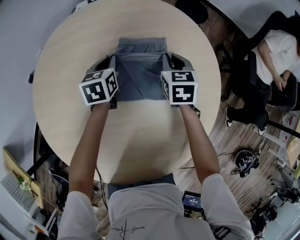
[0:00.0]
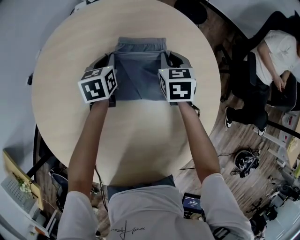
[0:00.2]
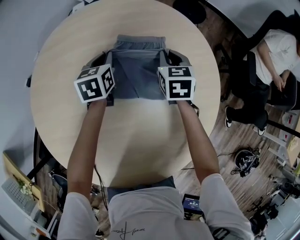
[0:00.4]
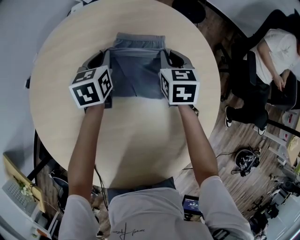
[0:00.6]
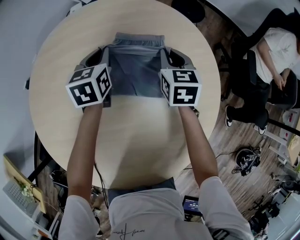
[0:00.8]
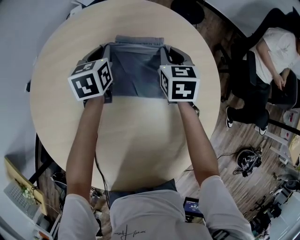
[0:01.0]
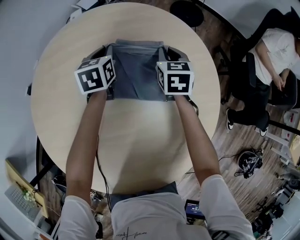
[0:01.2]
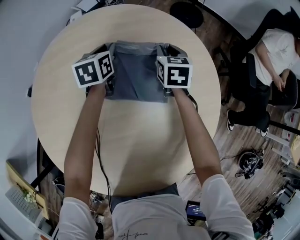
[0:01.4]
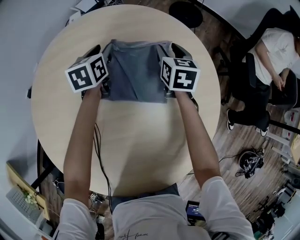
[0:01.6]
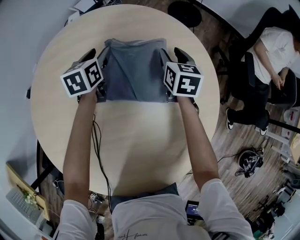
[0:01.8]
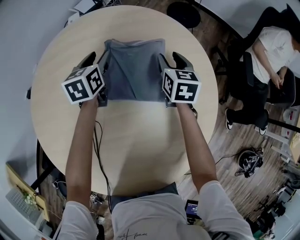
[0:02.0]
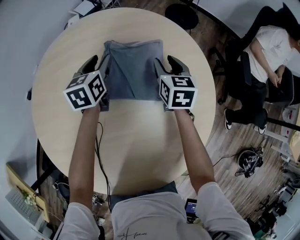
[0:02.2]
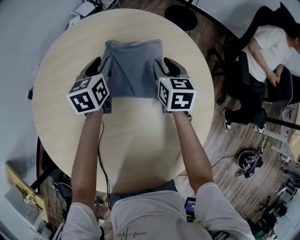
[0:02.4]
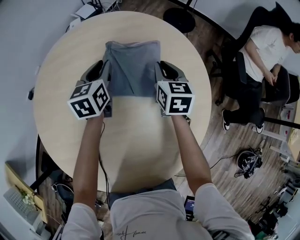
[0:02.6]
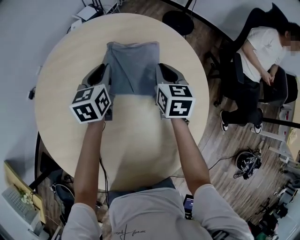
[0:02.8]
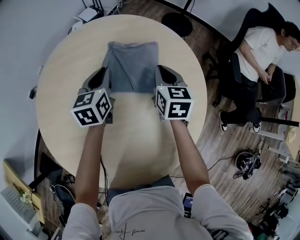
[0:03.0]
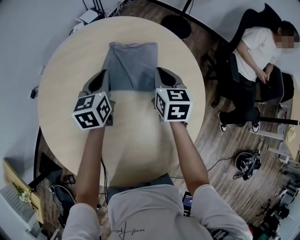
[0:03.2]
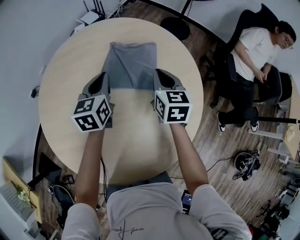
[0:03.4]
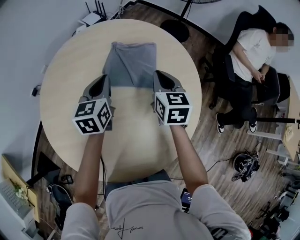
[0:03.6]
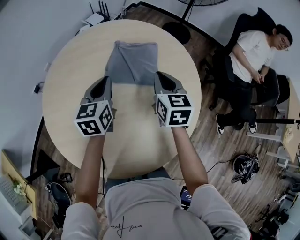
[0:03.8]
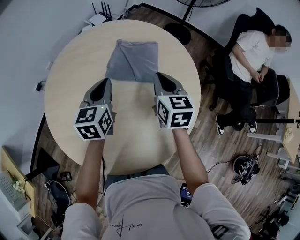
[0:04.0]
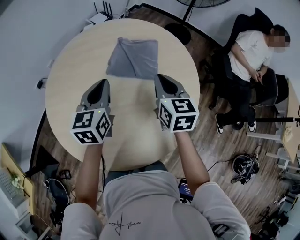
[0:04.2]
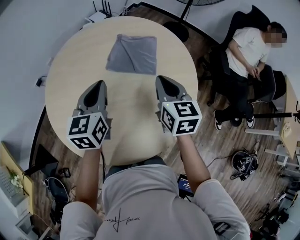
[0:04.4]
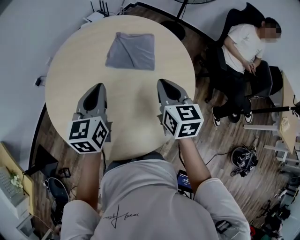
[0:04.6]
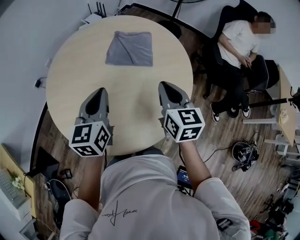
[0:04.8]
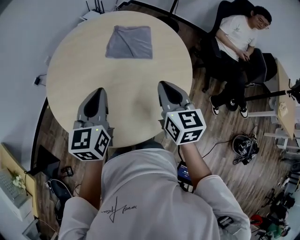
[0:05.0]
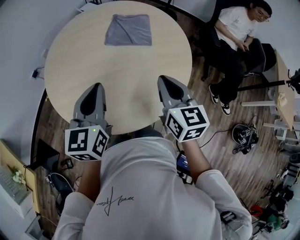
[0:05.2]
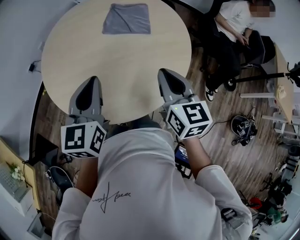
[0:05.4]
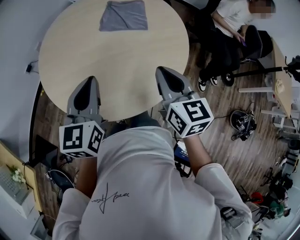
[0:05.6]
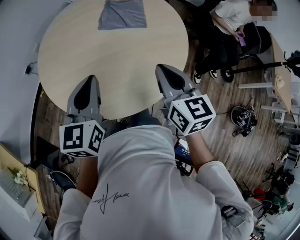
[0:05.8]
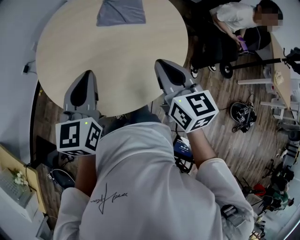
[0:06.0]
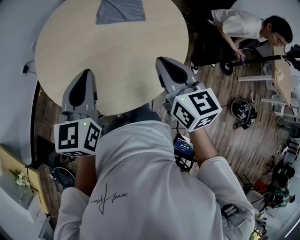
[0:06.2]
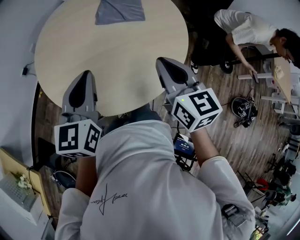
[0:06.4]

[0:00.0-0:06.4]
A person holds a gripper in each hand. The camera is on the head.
0:00.0 to 0:01.6: The grippers both shift forward by some 10 cm. The right gripper opens; the left gripper opens up.
0:01.6 to 0:03.2: Both grippers travel together backward and upward, roughly 20 cm. The right gripper closes, while the left gripper closes.
0:03.2 to 0:04.8: The grippers both shift backward and upward by roughly 30 cm.
0:04.8 to 0:06.4: Both grippers move backward and to the left, some 15 cm.

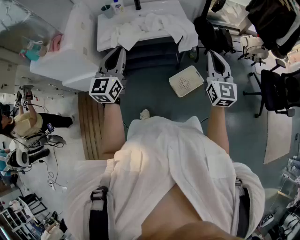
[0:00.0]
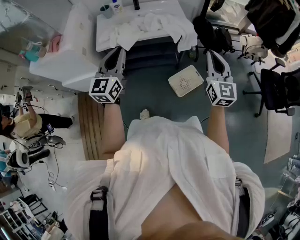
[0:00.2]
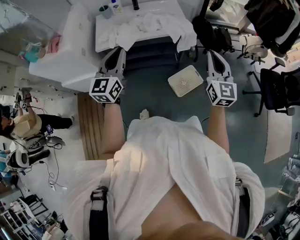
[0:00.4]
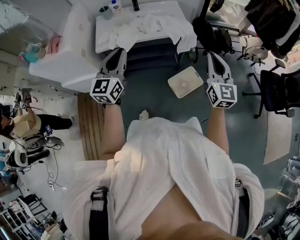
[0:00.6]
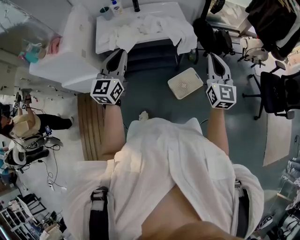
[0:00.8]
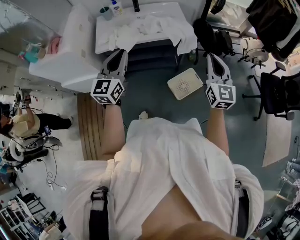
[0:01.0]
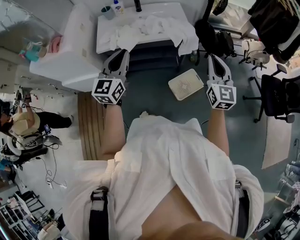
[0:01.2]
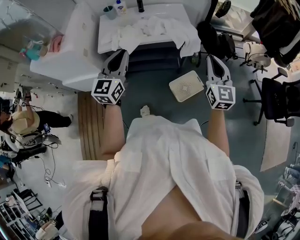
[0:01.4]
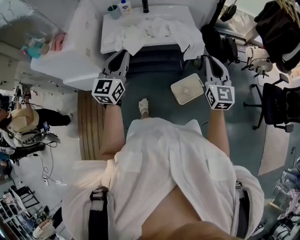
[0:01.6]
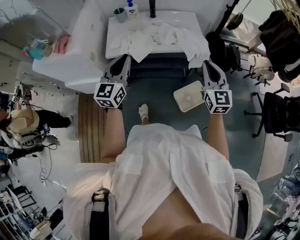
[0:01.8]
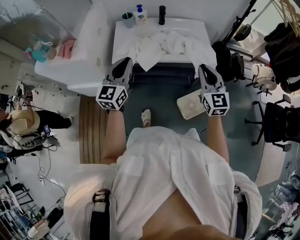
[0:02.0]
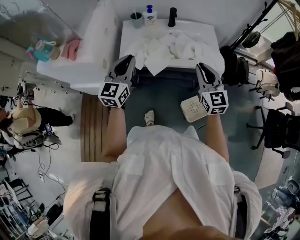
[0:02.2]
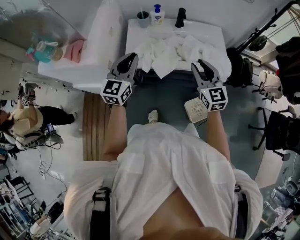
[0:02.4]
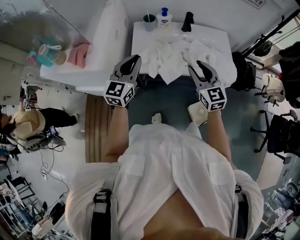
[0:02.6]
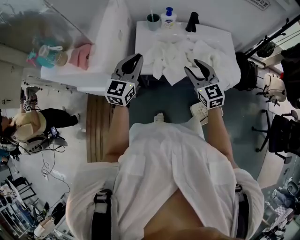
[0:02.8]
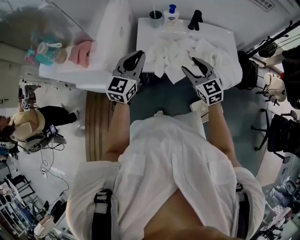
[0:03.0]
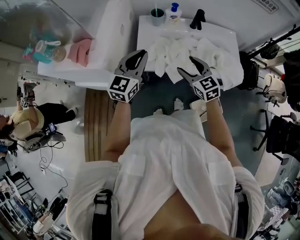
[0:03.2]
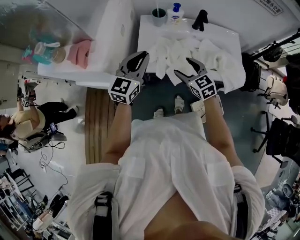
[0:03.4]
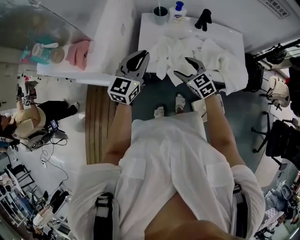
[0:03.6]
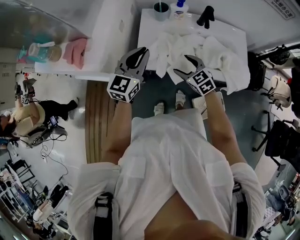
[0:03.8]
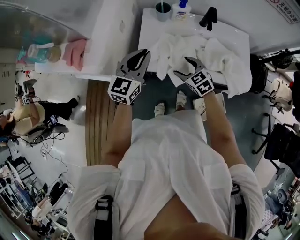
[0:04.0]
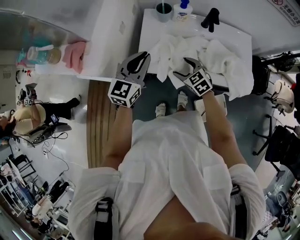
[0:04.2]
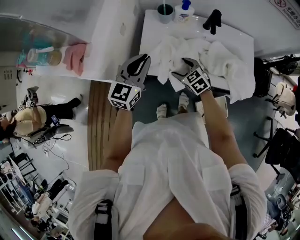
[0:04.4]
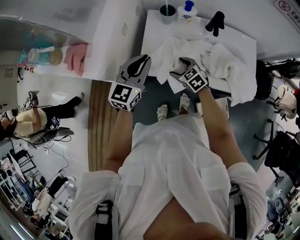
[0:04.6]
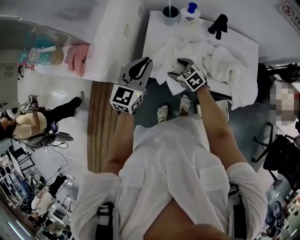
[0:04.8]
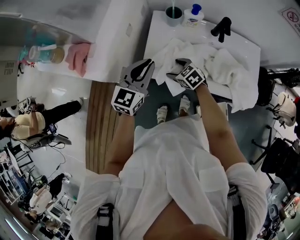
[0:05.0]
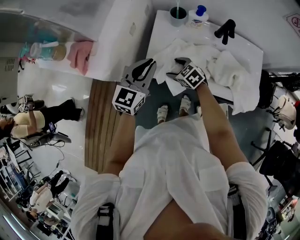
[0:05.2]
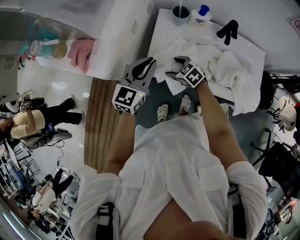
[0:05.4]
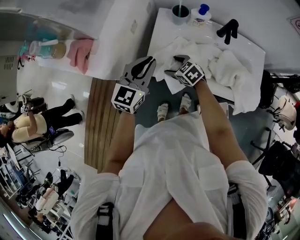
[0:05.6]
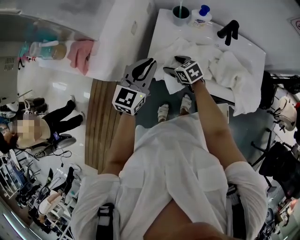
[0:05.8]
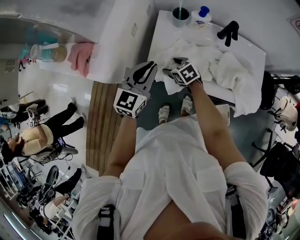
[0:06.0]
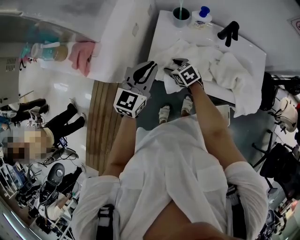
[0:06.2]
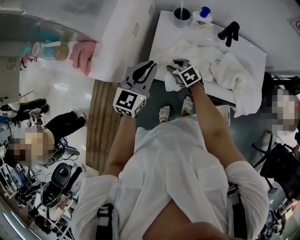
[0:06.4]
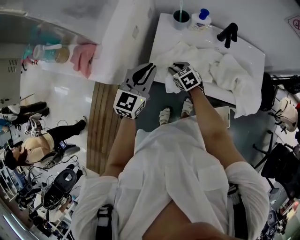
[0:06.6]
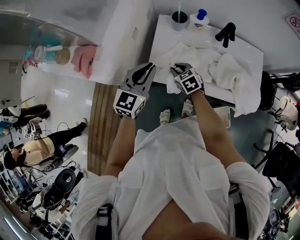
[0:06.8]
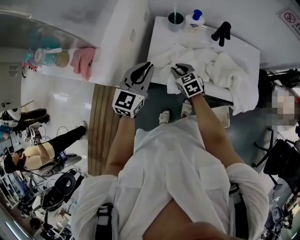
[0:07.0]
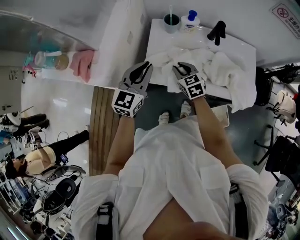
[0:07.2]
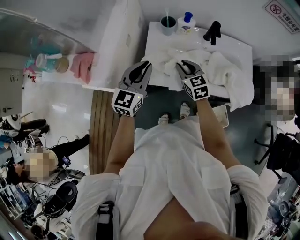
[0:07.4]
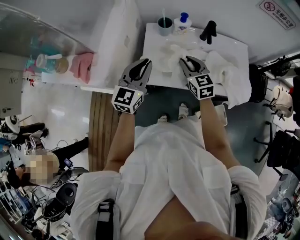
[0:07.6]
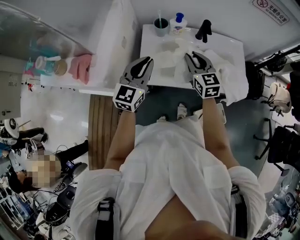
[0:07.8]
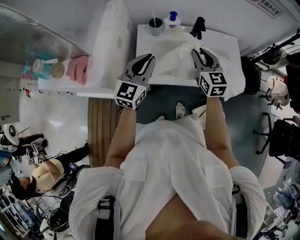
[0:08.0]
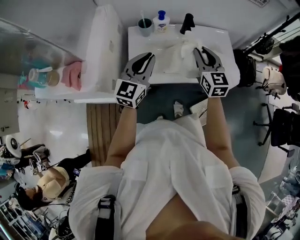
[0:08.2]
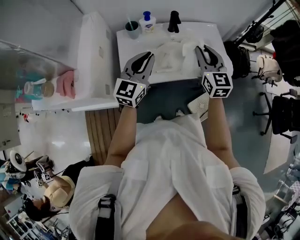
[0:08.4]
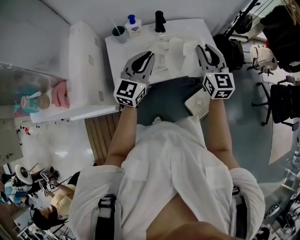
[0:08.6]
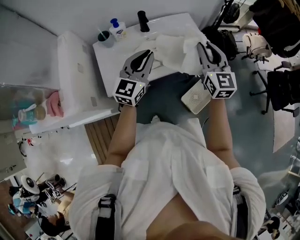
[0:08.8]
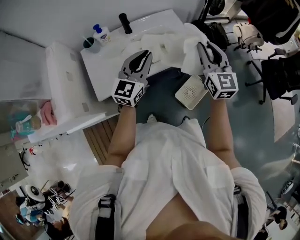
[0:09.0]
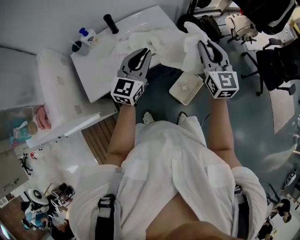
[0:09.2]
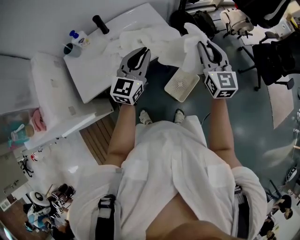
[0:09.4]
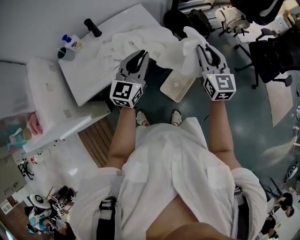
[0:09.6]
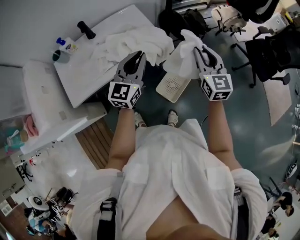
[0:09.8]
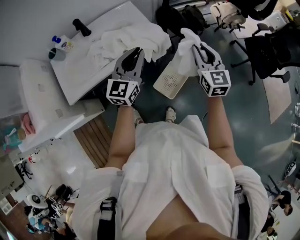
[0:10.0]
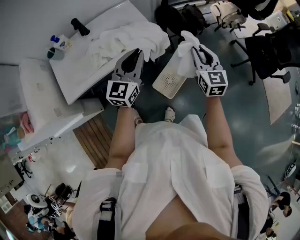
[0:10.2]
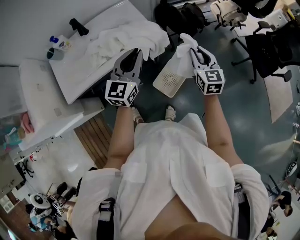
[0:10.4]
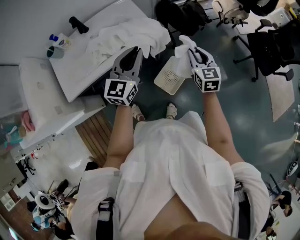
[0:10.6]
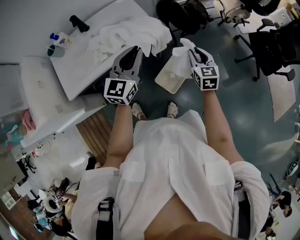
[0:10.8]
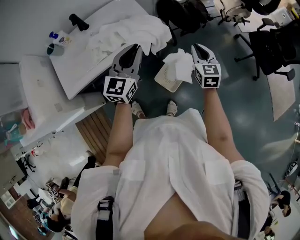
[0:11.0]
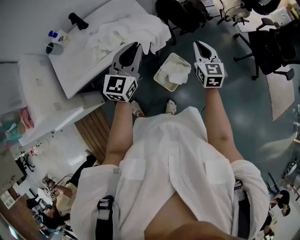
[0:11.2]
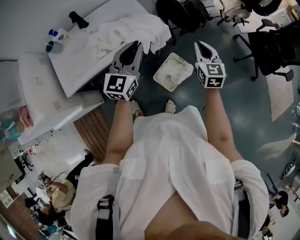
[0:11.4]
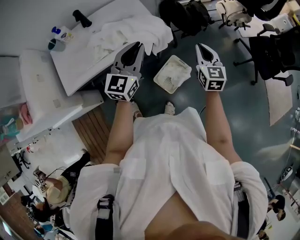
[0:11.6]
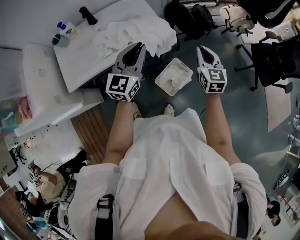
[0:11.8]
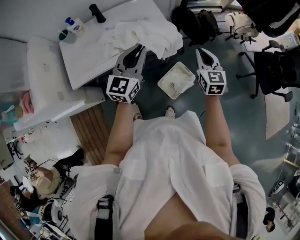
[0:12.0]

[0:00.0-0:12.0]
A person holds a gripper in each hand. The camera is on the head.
0:00.0 to 0:01.6: The right gripper shifts some 5 cm forward.
0:01.6 to 0:03.0: The left gripper goes some 30 cm forward and to the left, while the right gripper travels to the left and forward by about 40 cm, rotates roughly 30 degrees, and opens.
0:03.0 to 0:04.4: The left gripper travels downward by approximately 5 cm. Meanwhile the right gripper shifts approximately 20 cm downward and forward, and turns by some 30 degrees.
0:04.4 to 0:06.0: The right gripper travels to the left and forward by roughly 10 cm.
0:06.0 to 0:07.6: The left gripper heads upward, covering roughly 5 cm; the right gripper heads upward and to the right, covering some 20 cm, swivels approximately 40 degrees, and closes its fingers.
0:07.6 to 0:09.0: The left gripper shifts by some 30 cm, and changes its angle by about 30 degrees. Meanwhile the right gripper shifts by approximately 40 cm, and changes its angle by some 40 degrees.
0:09.0 to 0:10.4: The right gripper heads to the right and downward, covering about 30 cm, while the left gripper goes roughly 20 cm to the right.
0:10.4 to 0:12.0: The two grippers go about 5 cm to the left.

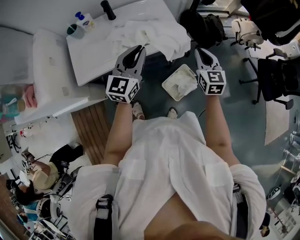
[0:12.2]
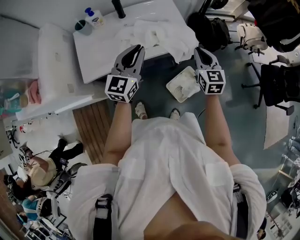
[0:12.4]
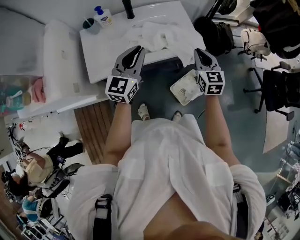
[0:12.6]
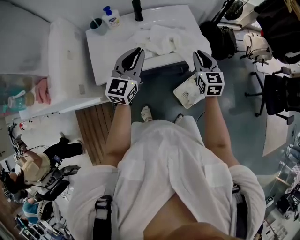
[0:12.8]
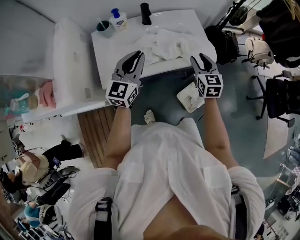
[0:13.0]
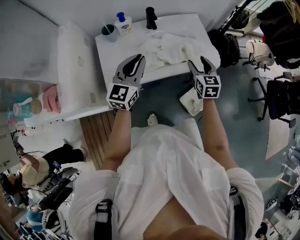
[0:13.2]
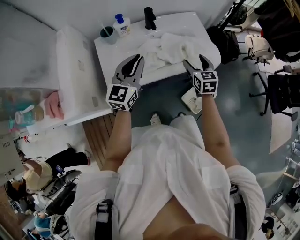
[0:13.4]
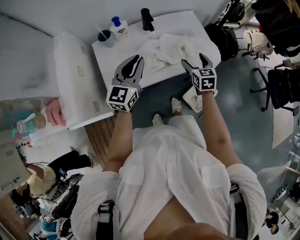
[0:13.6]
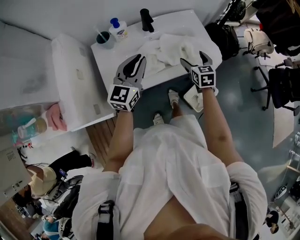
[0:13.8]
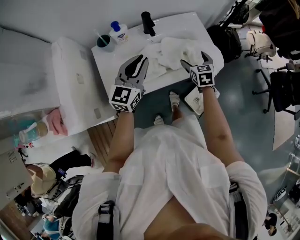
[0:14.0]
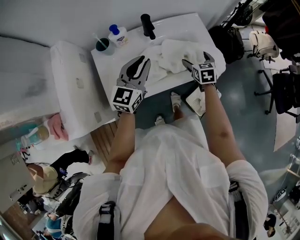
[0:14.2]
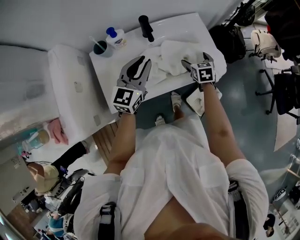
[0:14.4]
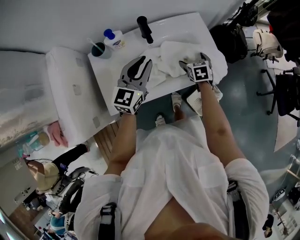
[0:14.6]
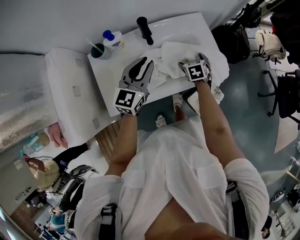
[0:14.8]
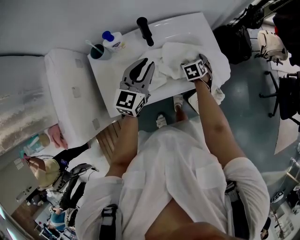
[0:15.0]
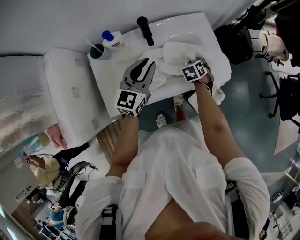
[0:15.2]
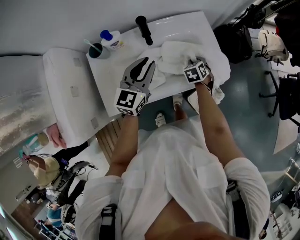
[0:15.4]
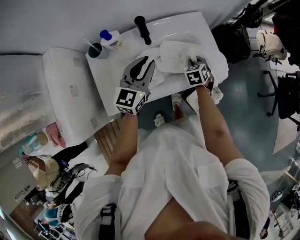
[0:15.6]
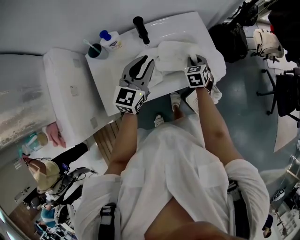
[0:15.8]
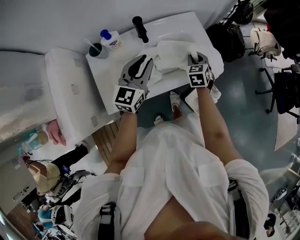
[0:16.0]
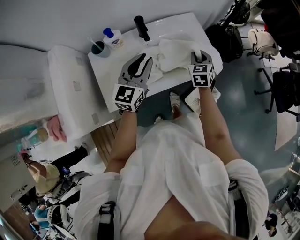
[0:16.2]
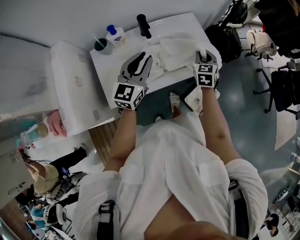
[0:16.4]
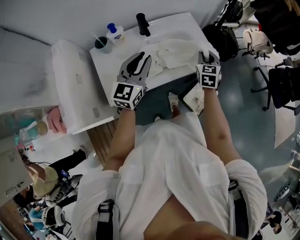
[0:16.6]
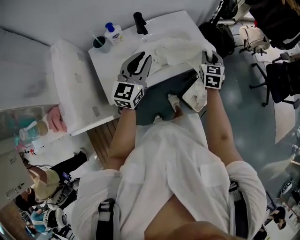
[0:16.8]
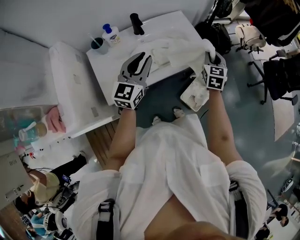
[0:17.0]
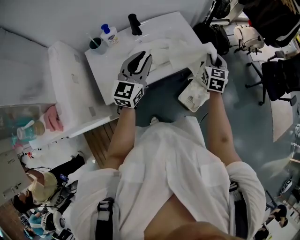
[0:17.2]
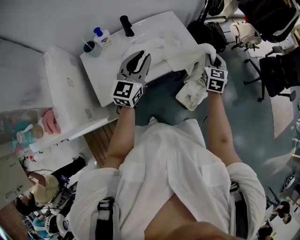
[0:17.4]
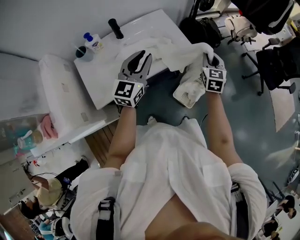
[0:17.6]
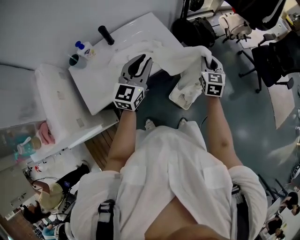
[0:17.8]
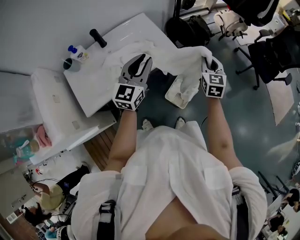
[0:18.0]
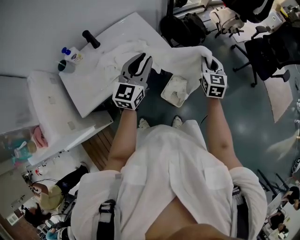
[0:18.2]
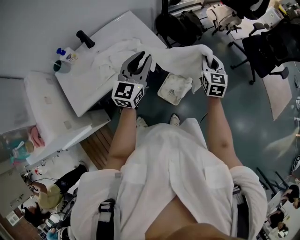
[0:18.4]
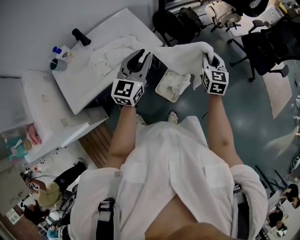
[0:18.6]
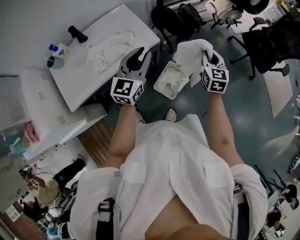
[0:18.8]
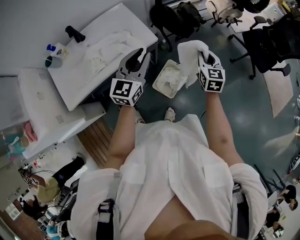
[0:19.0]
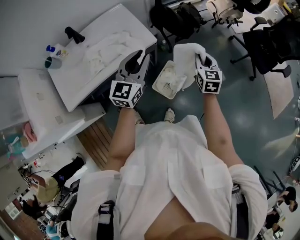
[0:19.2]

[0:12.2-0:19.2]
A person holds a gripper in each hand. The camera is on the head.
0:12.2 to 0:13.6: The grippers both shift to the left by roughly 25 cm. The right gripper opens up.
0:13.6 to 0:15.0: The left gripper moves forward and downward, some 15 cm. The right gripper travels downward and forward by roughly 20 cm, and tips its fingers downward by roughly 30 degrees.
0:15.0 to 0:16.4: The right gripper is displaced upward by roughly 15 cm, points its fingers approximately 30 degrees further upward, and closes, while the left gripper travels backward and upward by roughly 10 cm.
0:16.4 to 0:17.8: The two grippers go roughly 20 cm to the right.
0:17.8 to 0:19.2: Both grippers travel together to the right, approximately 15 cm.
